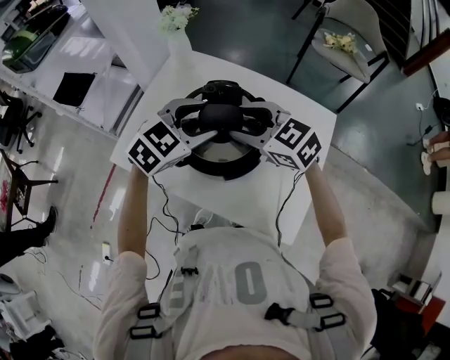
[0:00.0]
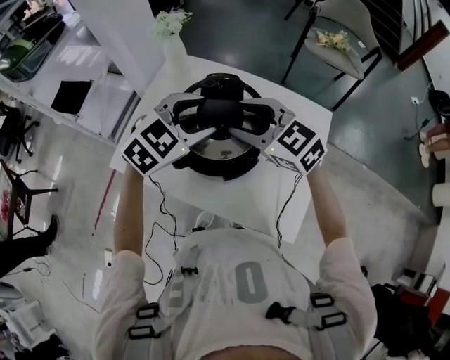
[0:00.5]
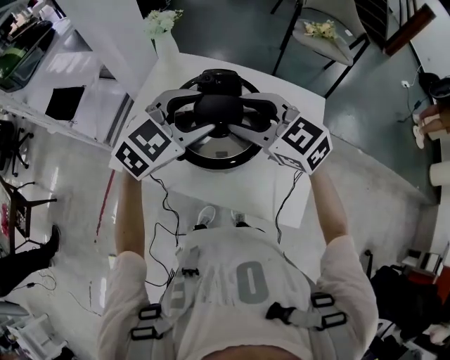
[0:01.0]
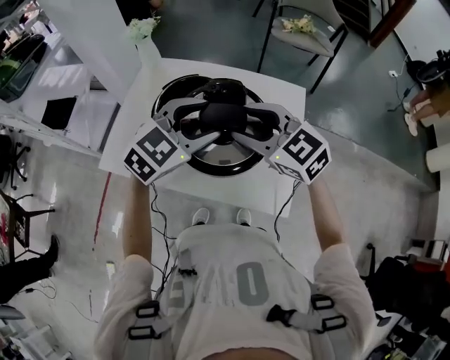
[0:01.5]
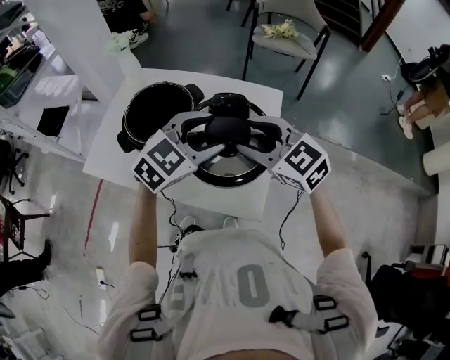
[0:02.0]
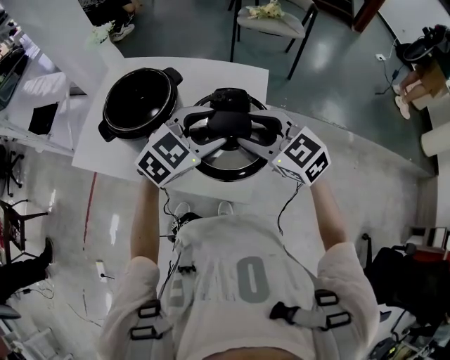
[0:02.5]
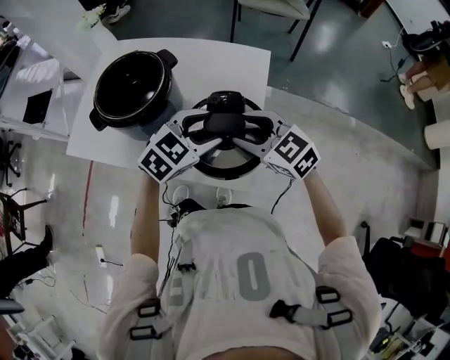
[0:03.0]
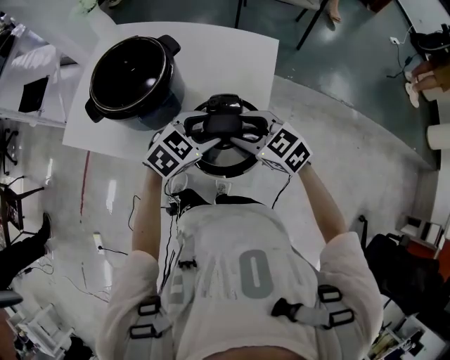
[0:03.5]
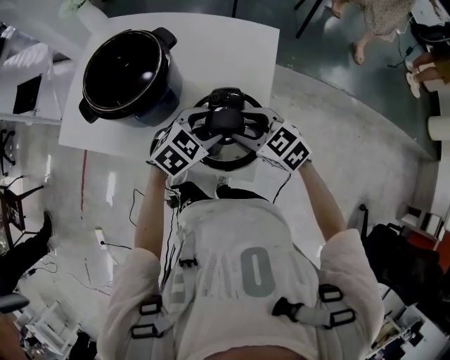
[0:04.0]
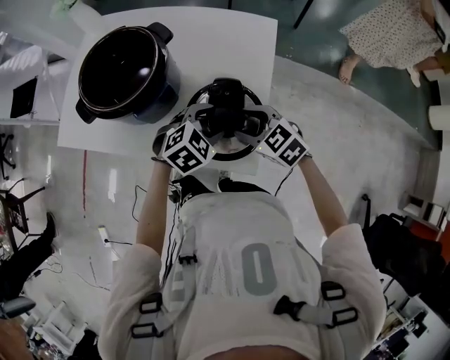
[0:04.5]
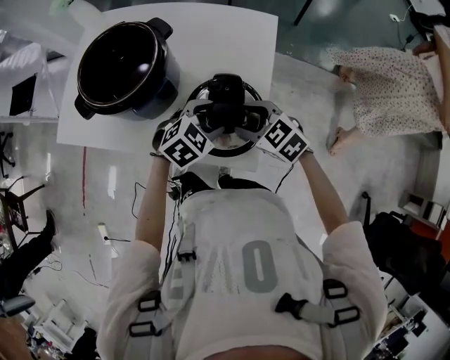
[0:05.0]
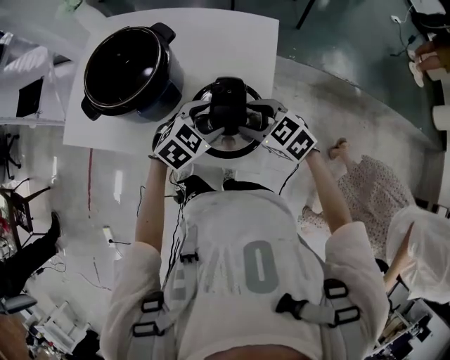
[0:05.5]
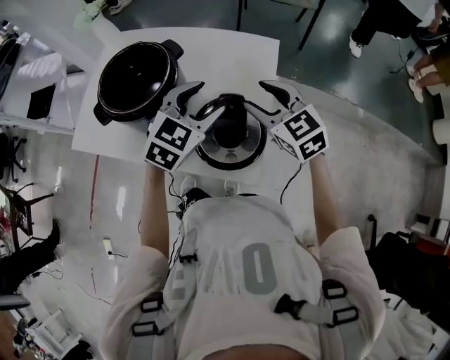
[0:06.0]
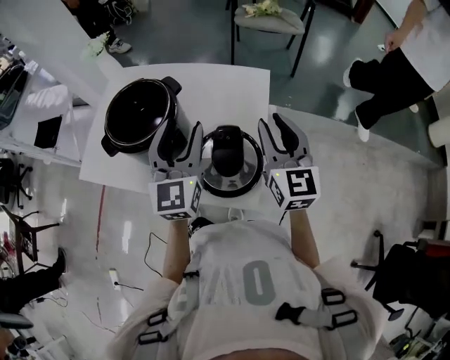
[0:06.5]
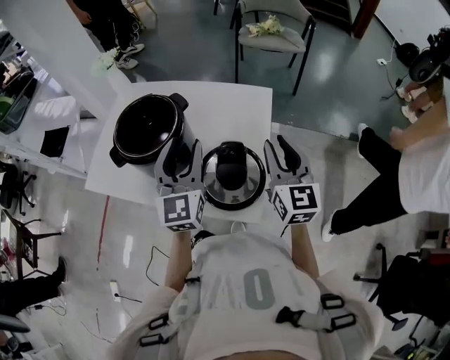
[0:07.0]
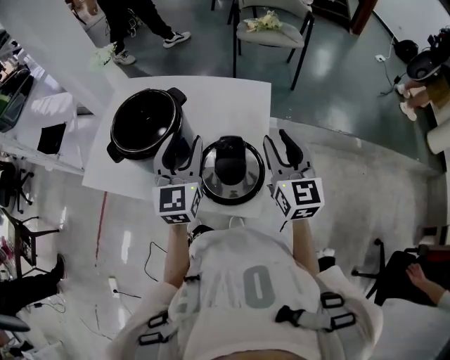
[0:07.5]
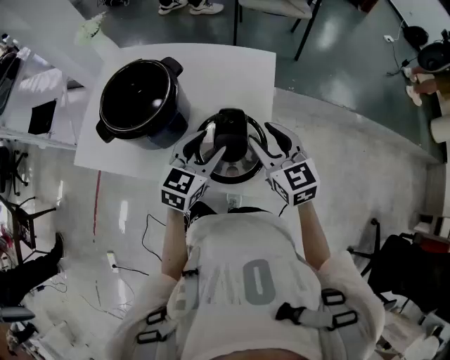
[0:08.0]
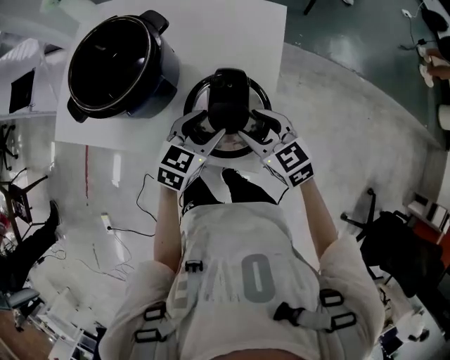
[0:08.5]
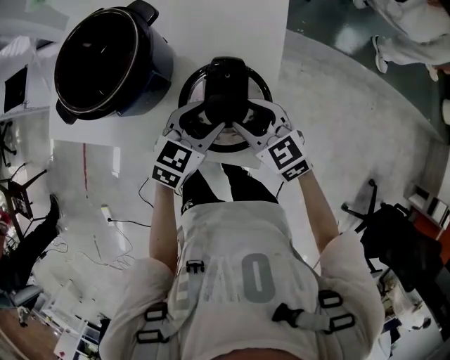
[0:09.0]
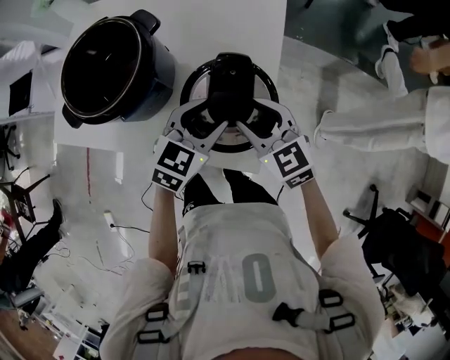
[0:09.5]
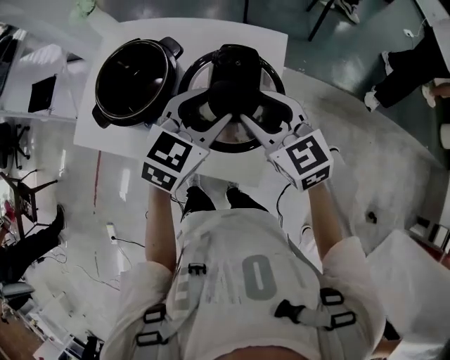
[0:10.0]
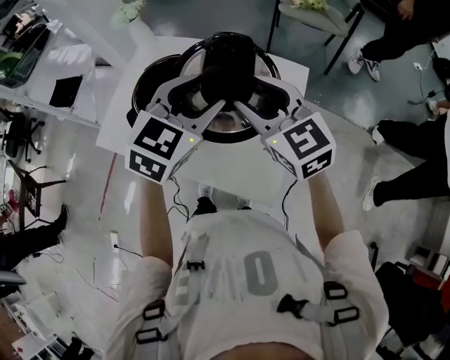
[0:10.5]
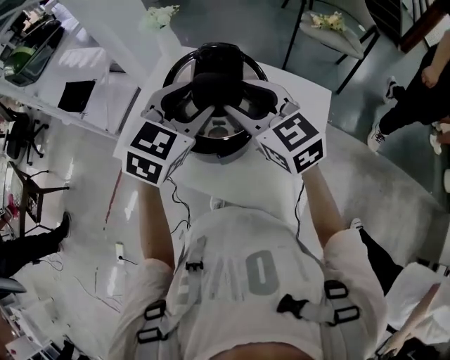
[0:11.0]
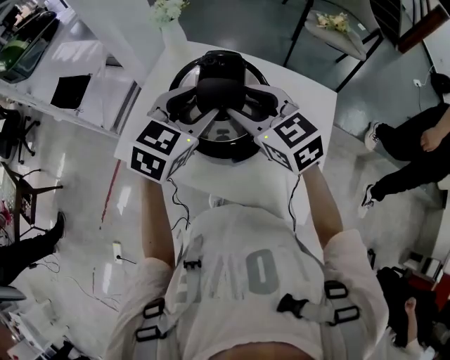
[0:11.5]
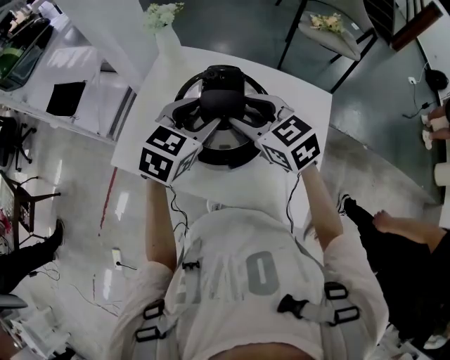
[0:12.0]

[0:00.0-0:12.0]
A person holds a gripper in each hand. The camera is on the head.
0:00.0 to 0:02.0: The two grippers go about 25 cm to the right and backward.
0:02.0 to 0:04.0: Both grippers travel together downward, some 20 cm. The right gripper changes its angle by approximately 20 degrees; the left gripper changes its angle by roughly 20 degrees.
0:04.0 to 0:06.0: The left gripper is displaced upward by approximately 15 cm, and rotates about 20 degrees; the right gripper shifts some 10 cm upward and forward, and changes its angle by roughly 20 degrees.
0:06.0 to 0:08.0: The right gripper moves some 5 cm upward and comes back. The left gripper heads downward, covering some 5 cm.
0:08.0 to 0:10.0: The left gripper moves upward, some 10 cm. The right gripper goes downward and returns, roughly 15 cm each way.
0:10.0 to 0:12.0: Both grippers move to the left and forward, approximately 30 cm.

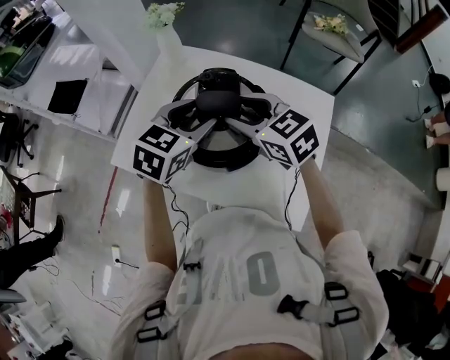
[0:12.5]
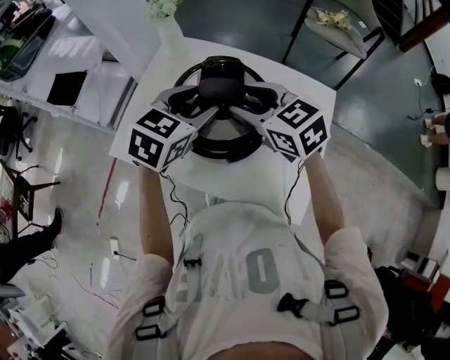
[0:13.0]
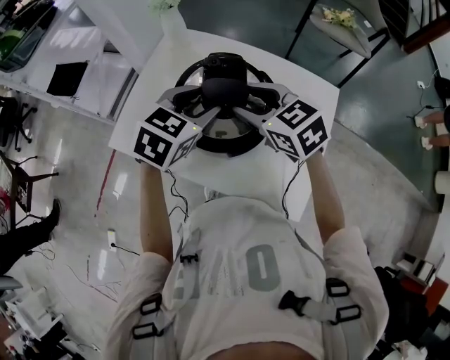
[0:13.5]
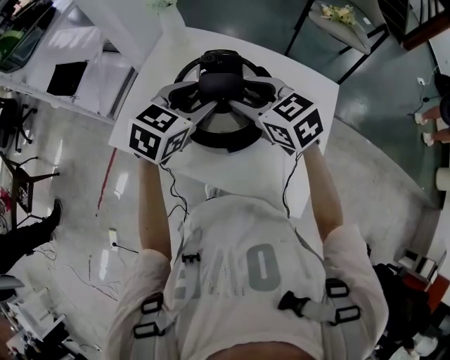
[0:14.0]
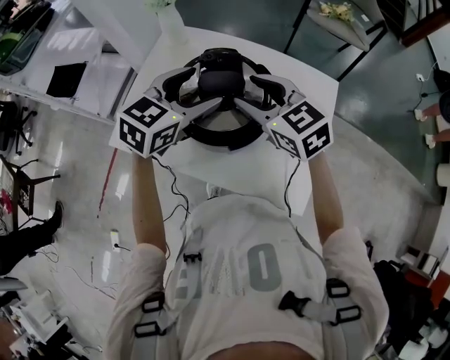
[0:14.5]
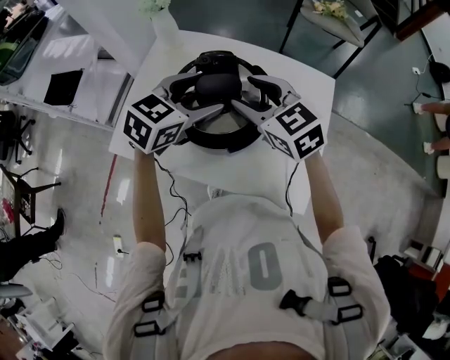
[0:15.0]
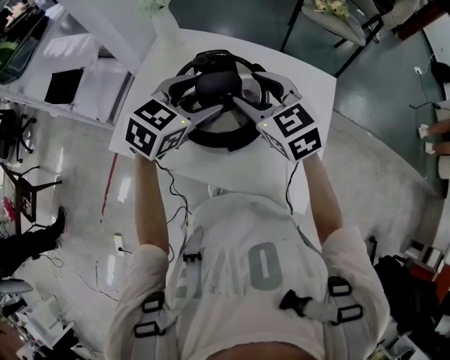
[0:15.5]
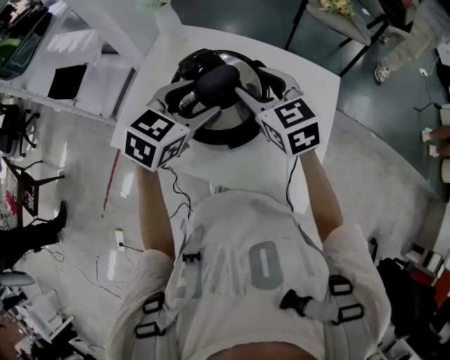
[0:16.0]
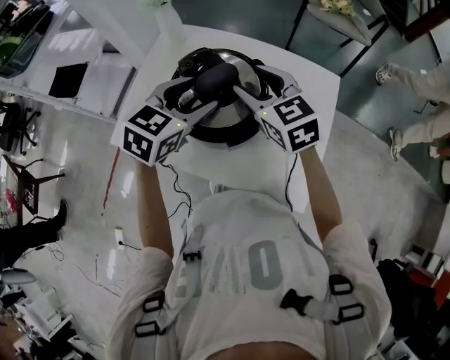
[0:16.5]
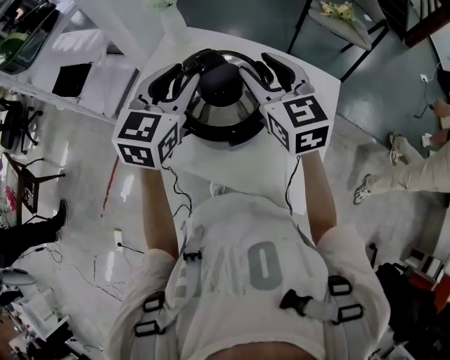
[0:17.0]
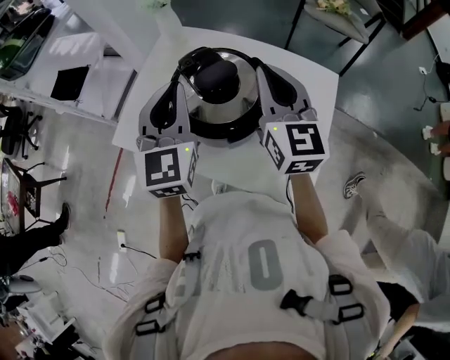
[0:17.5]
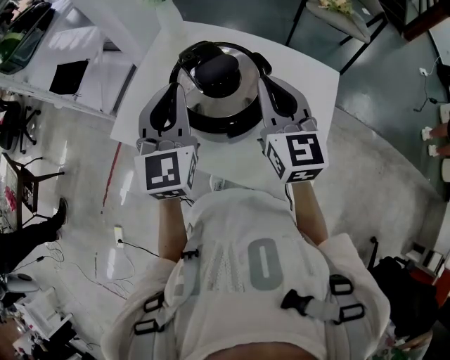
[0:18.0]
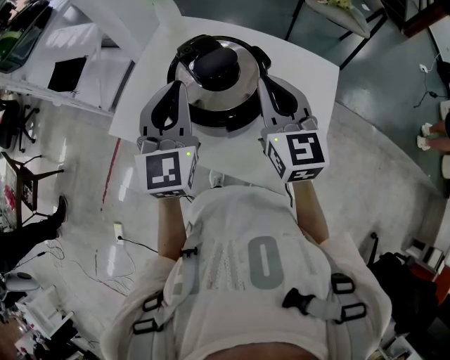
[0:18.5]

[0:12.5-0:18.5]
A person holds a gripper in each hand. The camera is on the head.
0:12.5 to 0:16.5: The grippers make only small movements.
0:16.5 to 0:18.5: The right gripper is displaced backward by approximately 5 cm, turns by approximately 20 degrees, and closes; the left gripper travels upward by some 5 cm, swivels about 40 degrees, and closes.

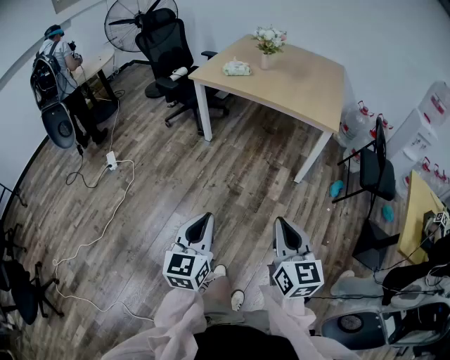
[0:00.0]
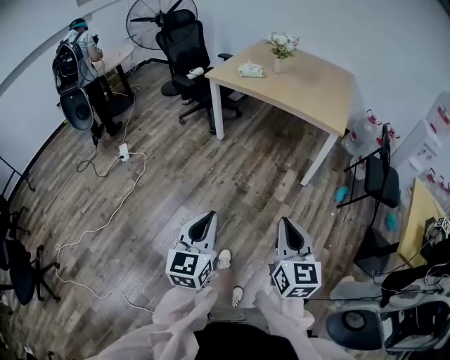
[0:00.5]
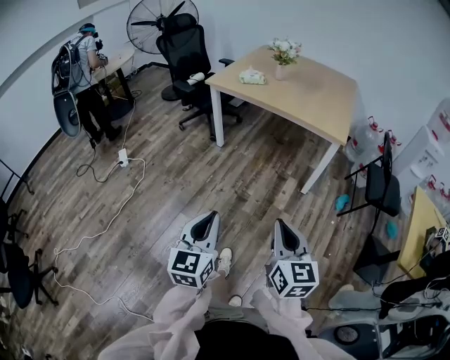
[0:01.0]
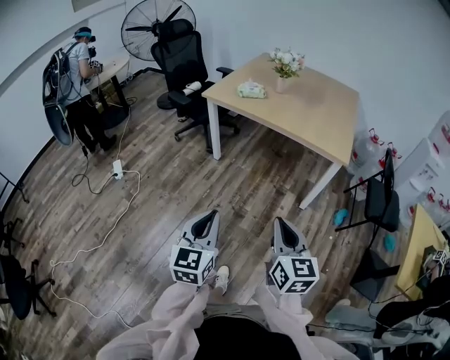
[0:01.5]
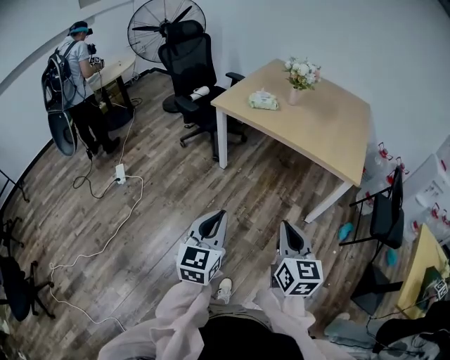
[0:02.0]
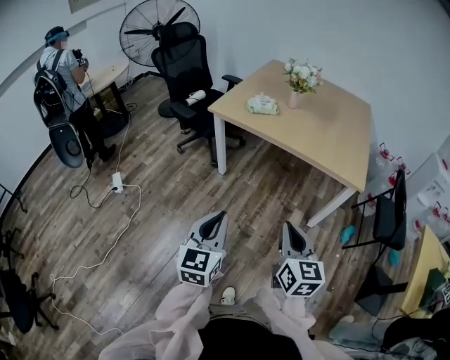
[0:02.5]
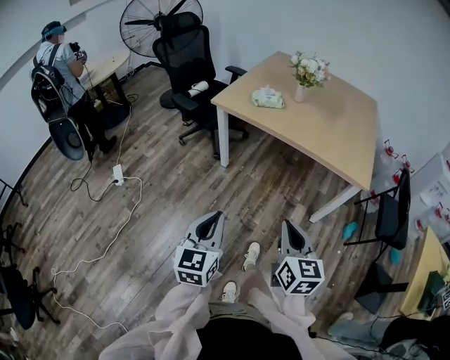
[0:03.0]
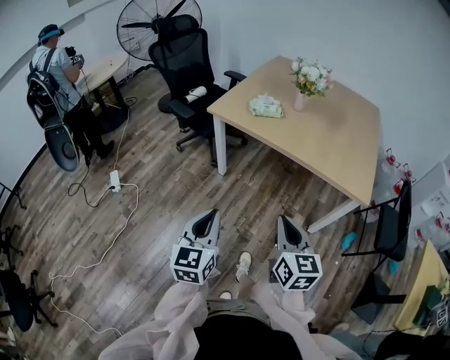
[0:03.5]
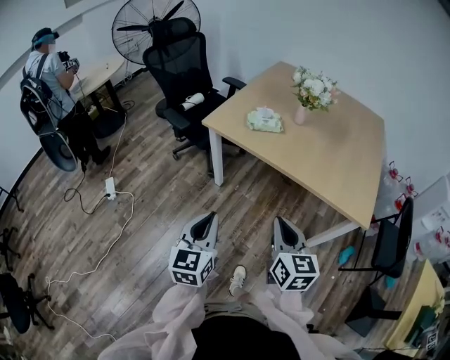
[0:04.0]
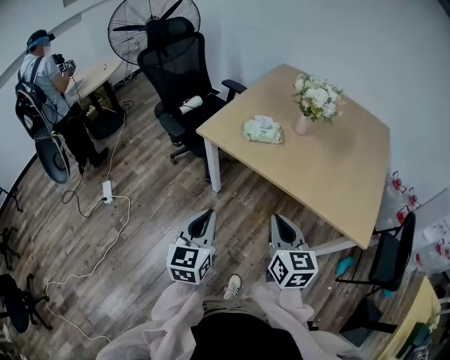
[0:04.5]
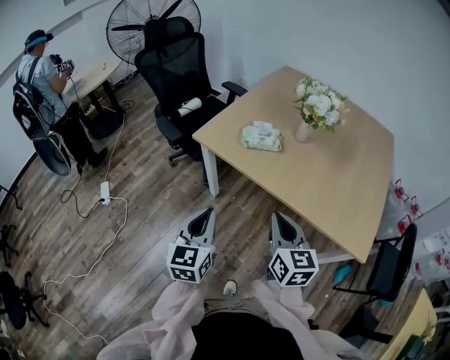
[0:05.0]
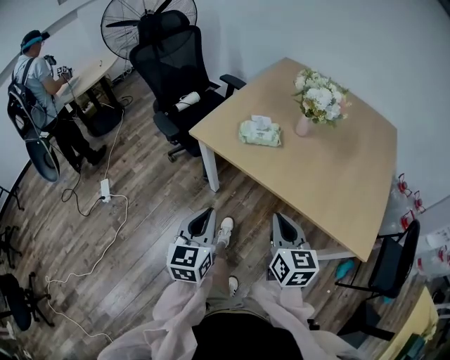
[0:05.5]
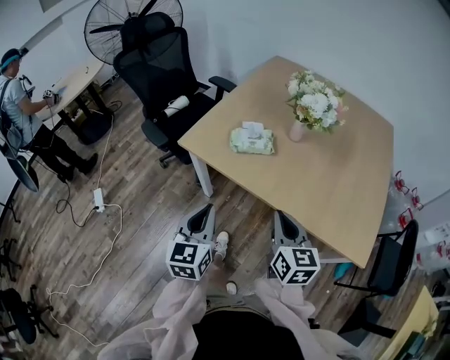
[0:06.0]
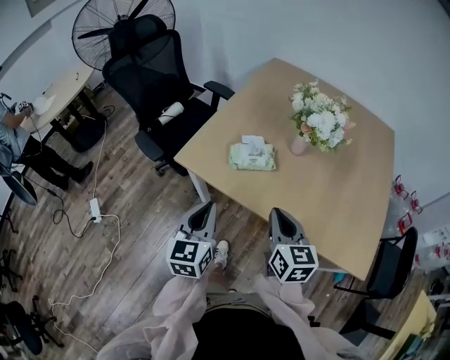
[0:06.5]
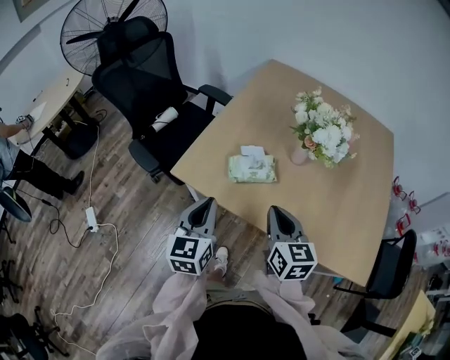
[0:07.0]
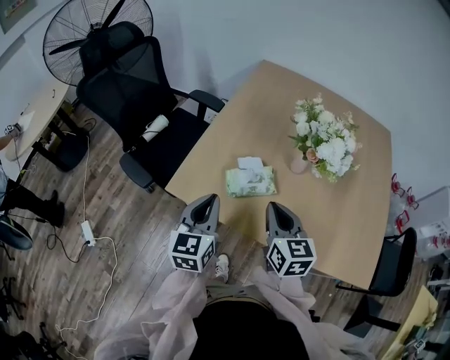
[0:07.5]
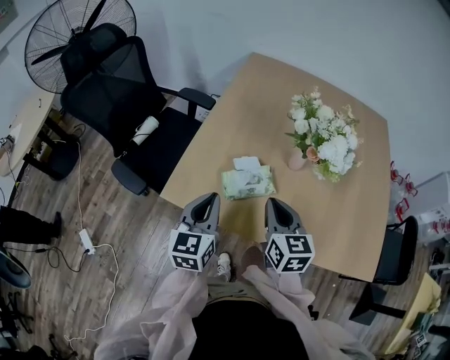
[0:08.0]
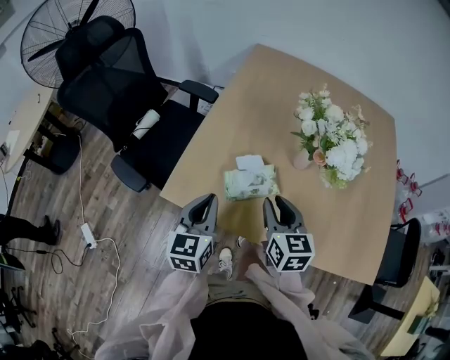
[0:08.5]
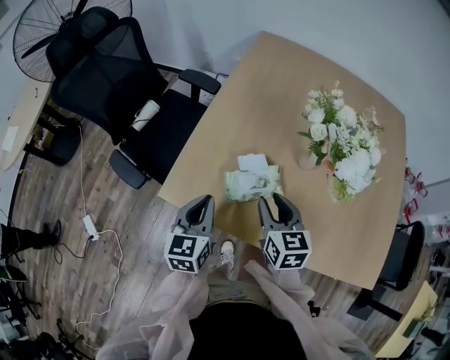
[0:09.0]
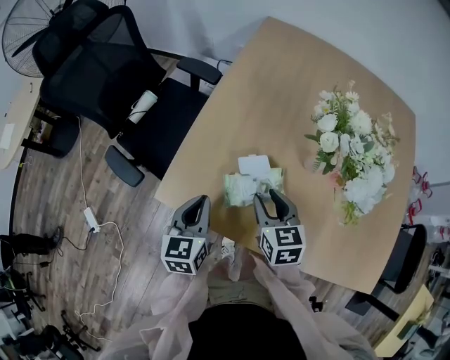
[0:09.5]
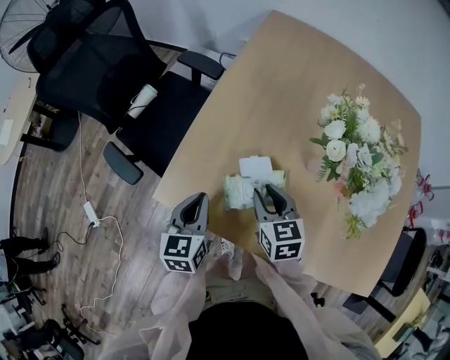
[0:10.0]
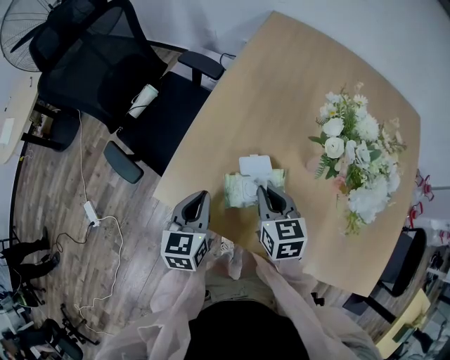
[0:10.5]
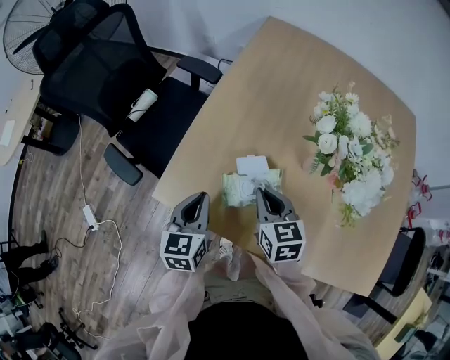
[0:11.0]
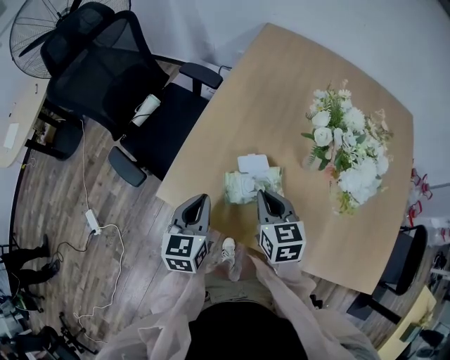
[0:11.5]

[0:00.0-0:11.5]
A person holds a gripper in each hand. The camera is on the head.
0:00.0 to 0:02.0: Both grippers travel together forward, roughly 20 cm.
0:02.0 to 0:04.0: The two grippers go some 25 cm forward.
0:04.0 to 0:06.0: Both grippers move forward, roughly 25 cm.
0:06.0 to 0:07.5: The grippers both shift forward by roughly 25 cm.
0:07.5 to 0:09.5: Both grippers move downward and forward, about 15 cm. The right gripper opens.
0:09.5 to 0:11.5: The right gripper closes.
